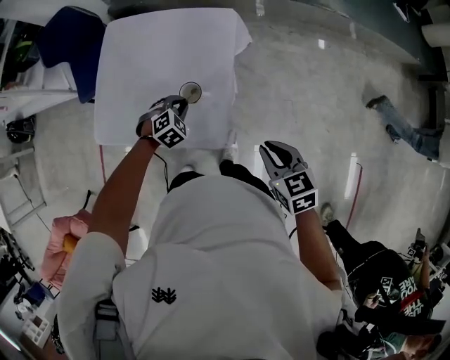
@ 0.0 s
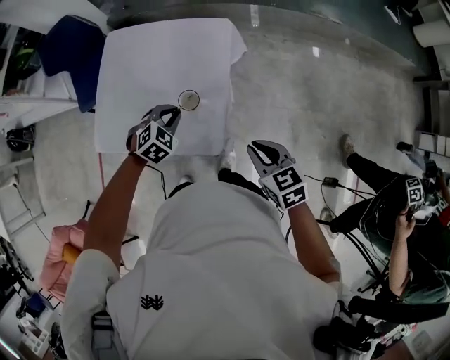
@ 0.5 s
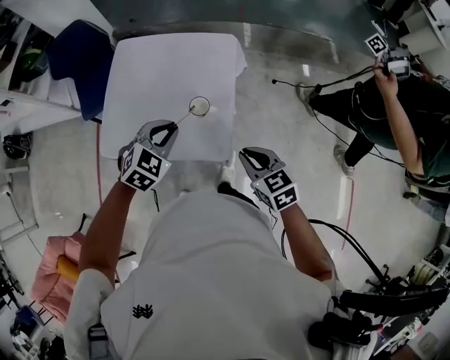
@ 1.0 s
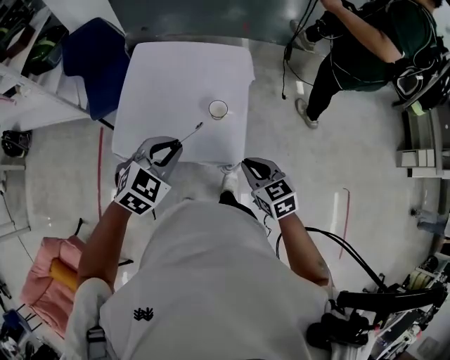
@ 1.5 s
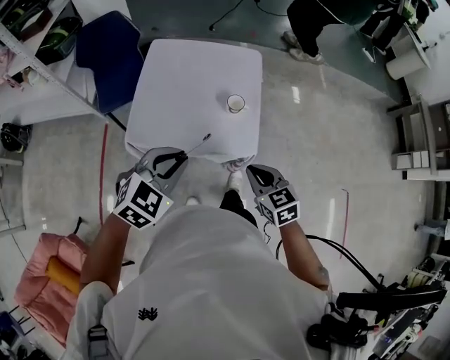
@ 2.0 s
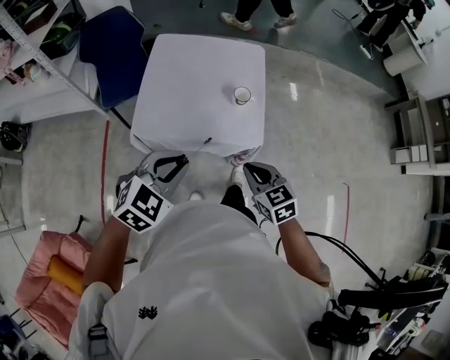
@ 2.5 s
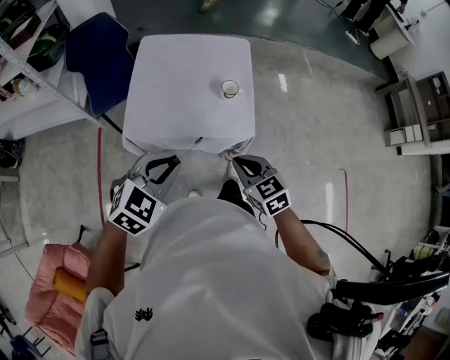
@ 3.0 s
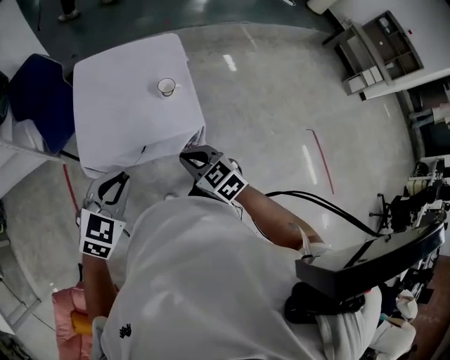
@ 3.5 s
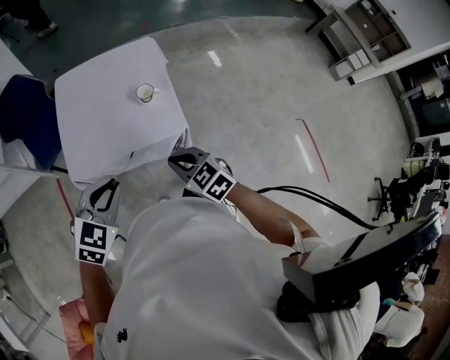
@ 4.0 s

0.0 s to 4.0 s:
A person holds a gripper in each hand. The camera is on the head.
0.0 to 2.0 s: The right gripper goes about 30 cm to the left and backward. The left gripper shifts approximately 40 cm upward, backward and to the left, and changes its angle by some 30 degrees.
2.0 to 4.0 s: The two grippers go roughly 5 cm backward.

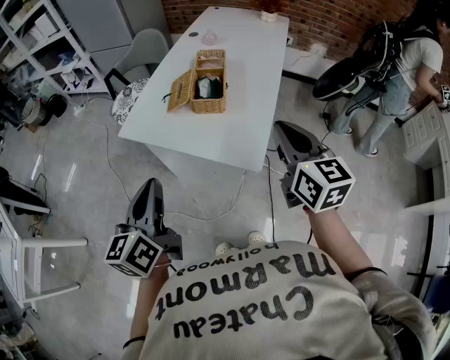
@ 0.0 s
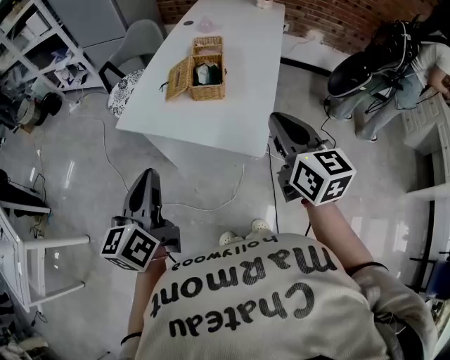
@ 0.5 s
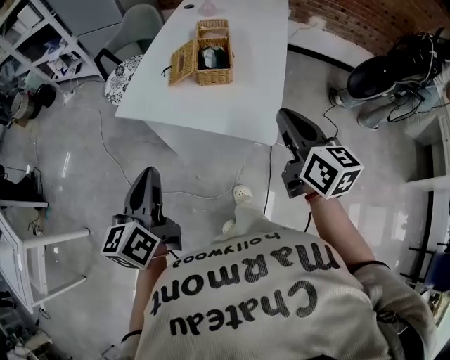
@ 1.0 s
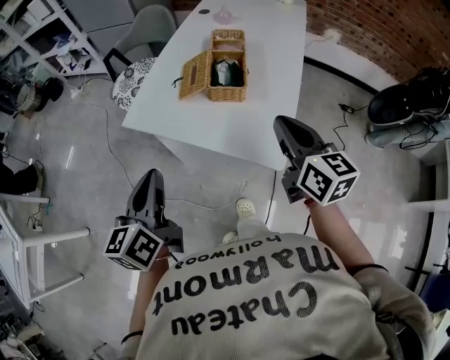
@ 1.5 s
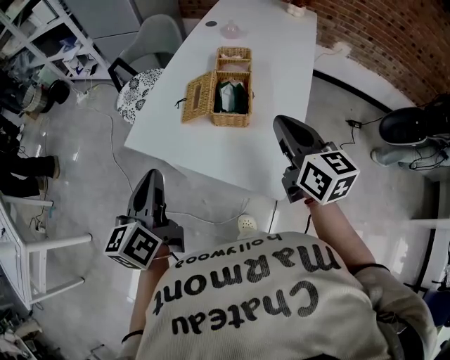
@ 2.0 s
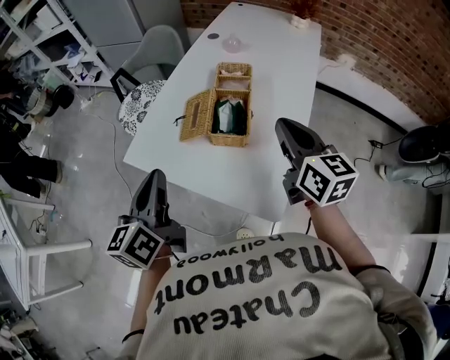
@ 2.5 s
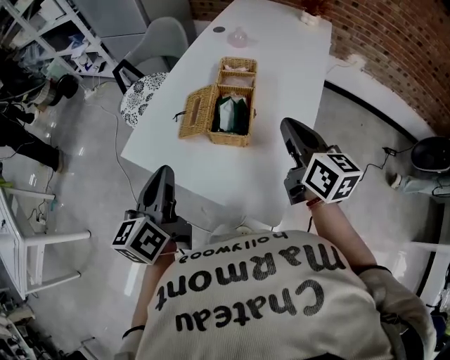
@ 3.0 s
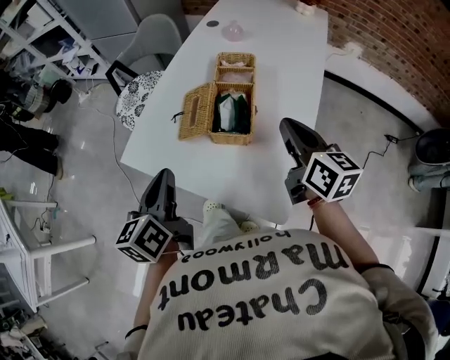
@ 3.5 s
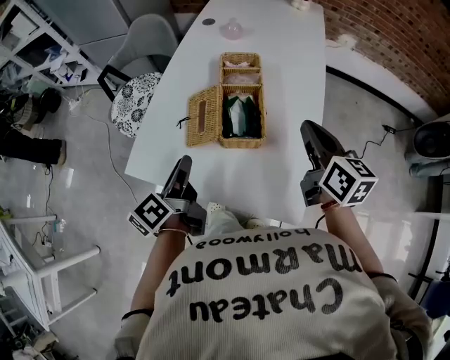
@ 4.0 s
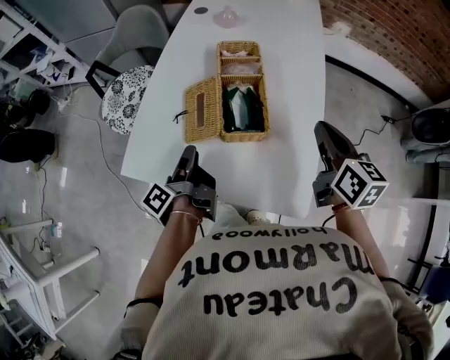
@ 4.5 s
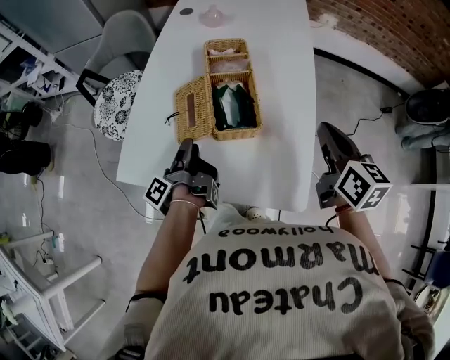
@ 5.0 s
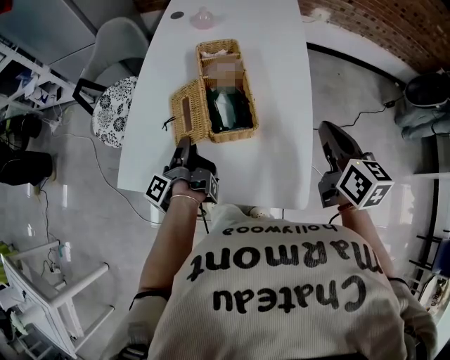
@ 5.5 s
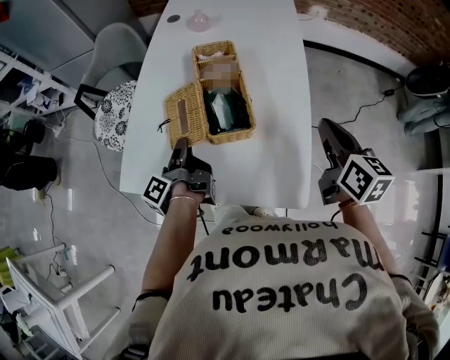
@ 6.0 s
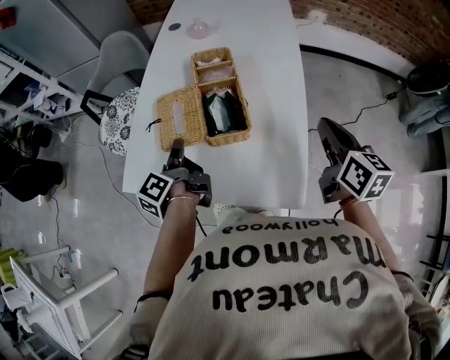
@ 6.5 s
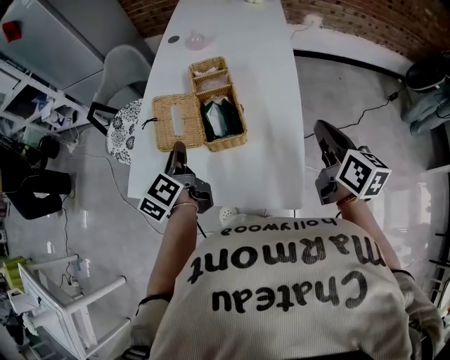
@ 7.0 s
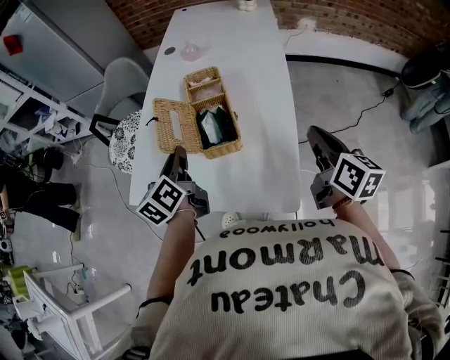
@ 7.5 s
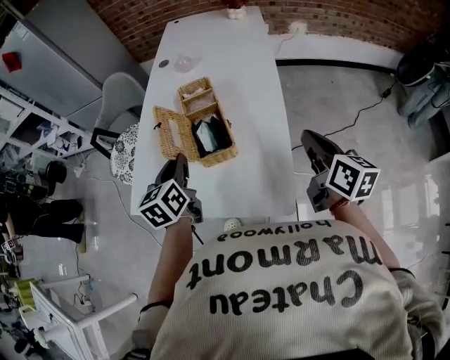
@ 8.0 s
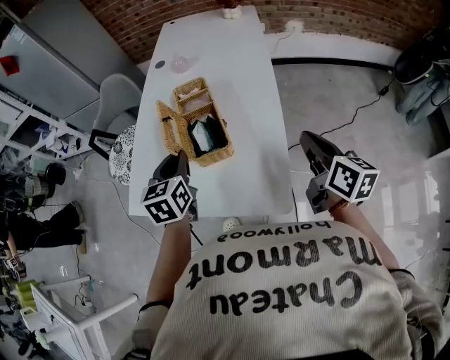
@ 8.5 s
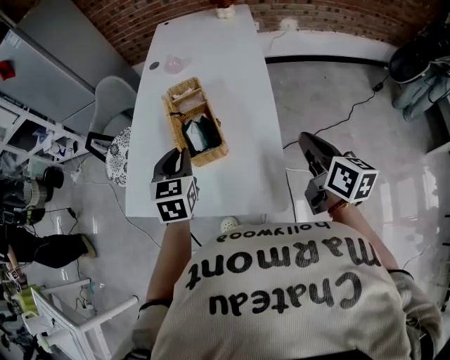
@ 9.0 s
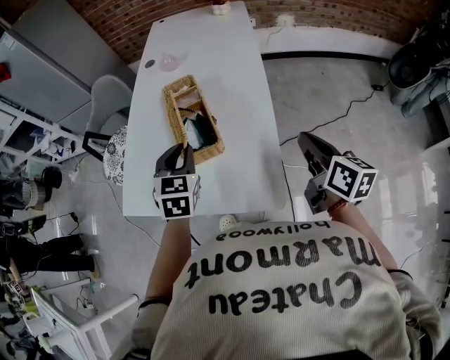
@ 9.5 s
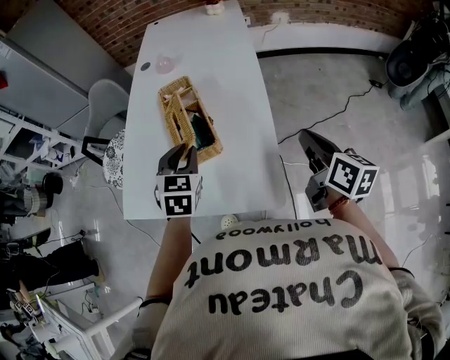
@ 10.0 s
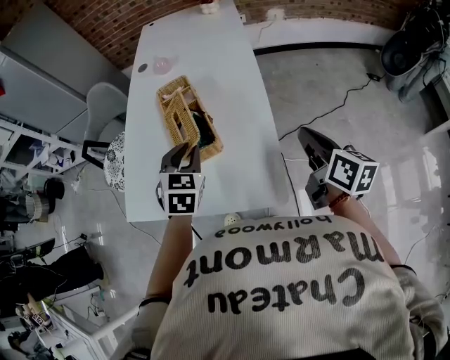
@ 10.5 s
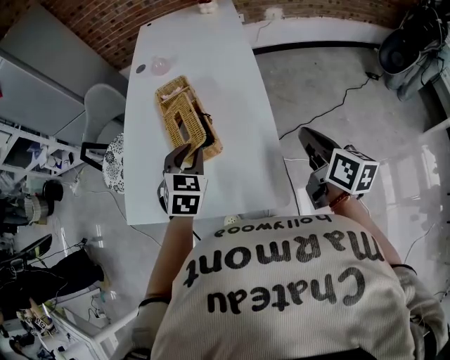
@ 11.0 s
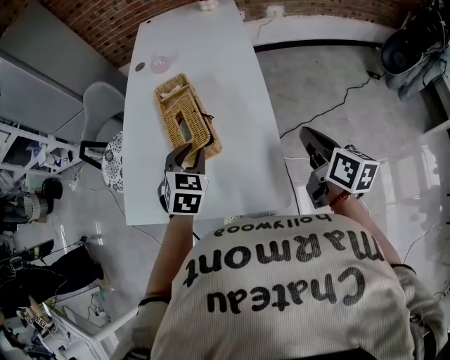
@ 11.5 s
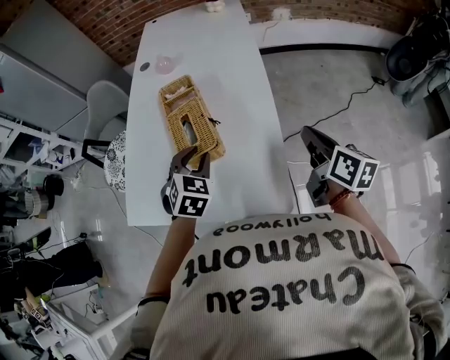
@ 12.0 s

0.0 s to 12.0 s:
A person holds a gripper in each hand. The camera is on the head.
0.0 to 2.0 s: The two grippers go approximately 15 cm forward.
2.0 to 4.0 s: The left gripper goes approximately 20 cm forward and downward, rotates some 30 degrees, and opens; the right gripper moves forward, to the right and downward, roughly 10 cm.
4.0 to 6.0 s: The right gripper travels to the right by roughly 5 cm; the left gripper goes approximately 10 cm downward and forward, and swivels about 40 degrees.
6.0 to 8.0 s: The right gripper ends up approximately 5 cm from where it was, while the left gripper moves upward and to the right, some 15 cm, and twists roughly 80 degrees clockwise, seen from behind.
8.0 to 10.0 s: The left gripper goes some 10 cm to the right, and rotates approximately 40 degrees; the right gripper ends up approximately 5 cm from where it was.
10.0 to 12.0 s: The grippers move only a little.

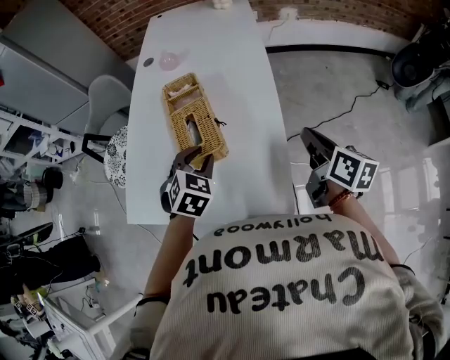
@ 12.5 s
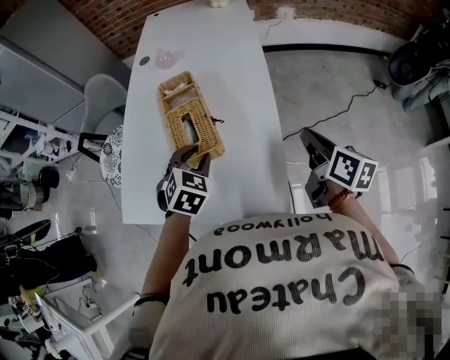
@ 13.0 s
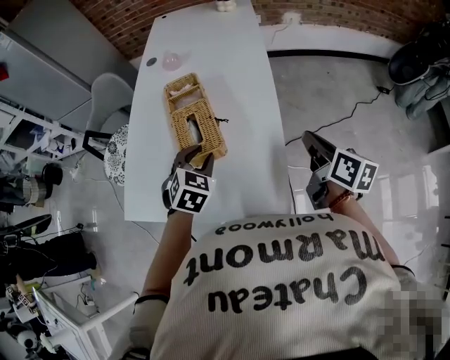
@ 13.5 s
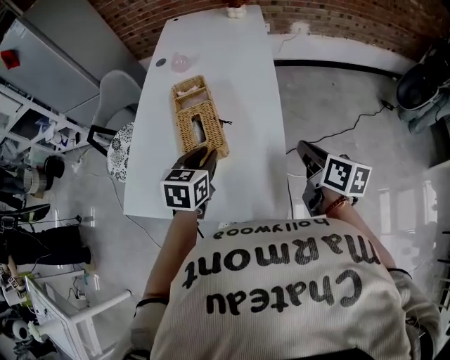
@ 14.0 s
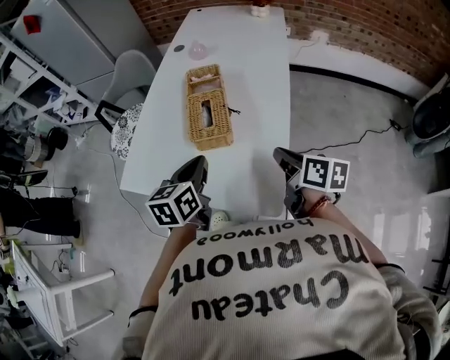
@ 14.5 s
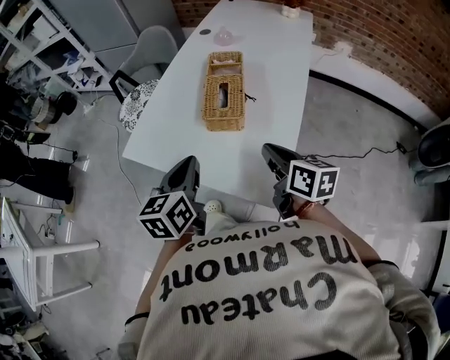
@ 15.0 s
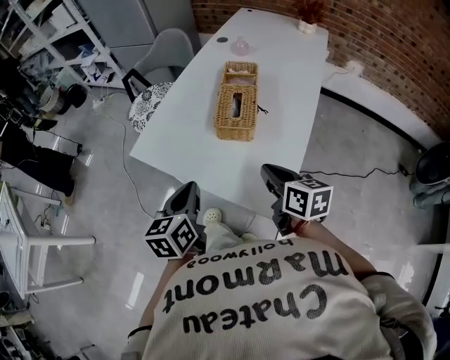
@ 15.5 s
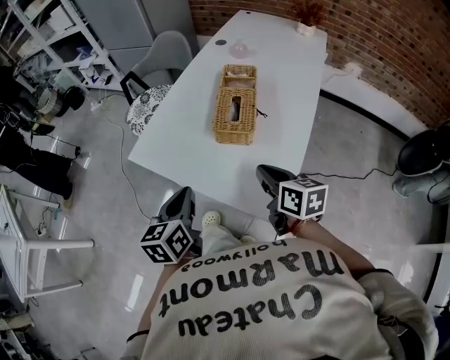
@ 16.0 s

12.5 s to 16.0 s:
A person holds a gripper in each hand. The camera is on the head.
12.5 to 14.5 s: The left gripper goes about 10 cm backward, rotates around the line of its fingers by about 60 degrees, counterclockwise from behind, and closes up; the right gripper heads to the left, covering some 5 cm, and swivels about 20 degrees.
14.5 to 16.0 s: The left gripper moves to the left and backward, about 15 cm, while the right gripper shifts about 10 cm to the left, and rotates roughly 20 degrees.

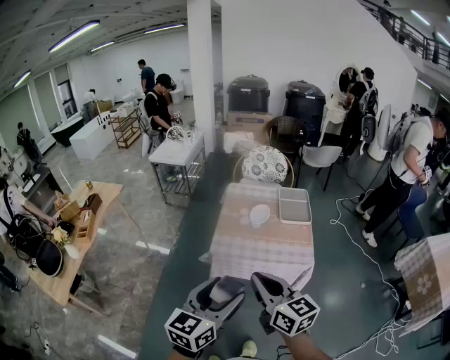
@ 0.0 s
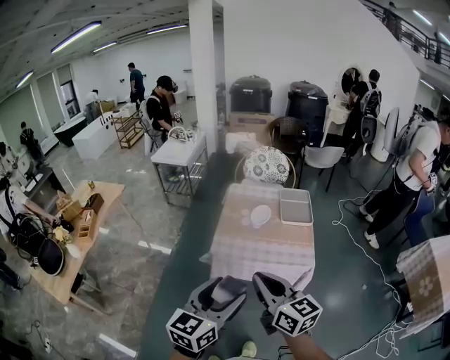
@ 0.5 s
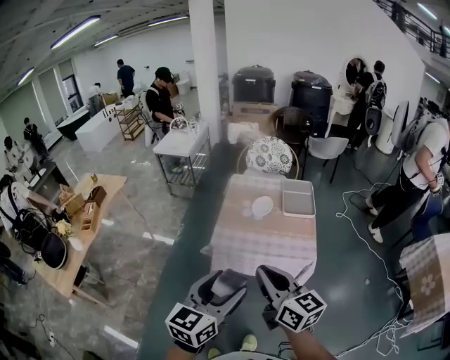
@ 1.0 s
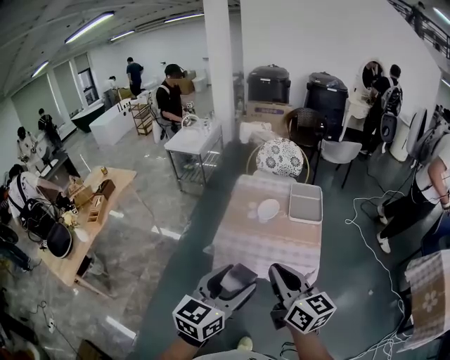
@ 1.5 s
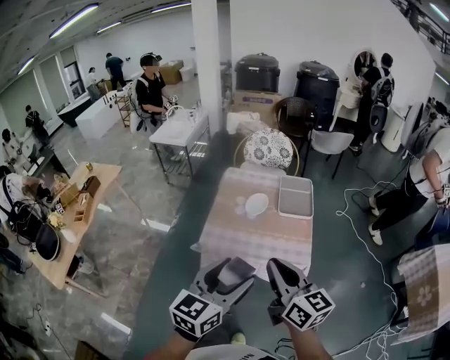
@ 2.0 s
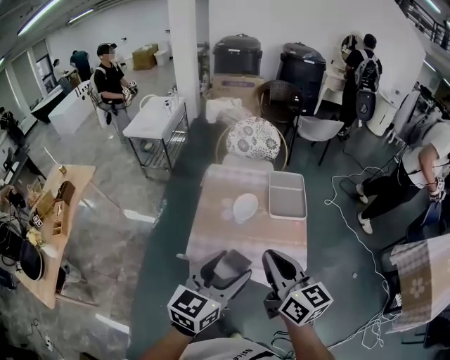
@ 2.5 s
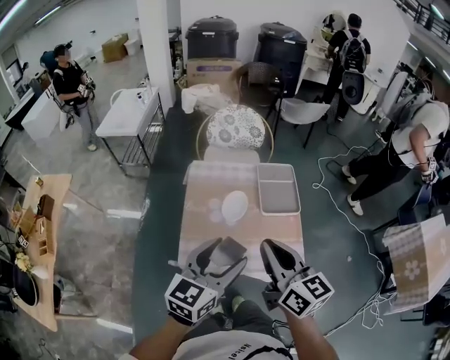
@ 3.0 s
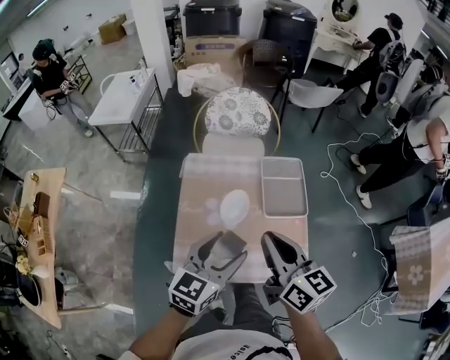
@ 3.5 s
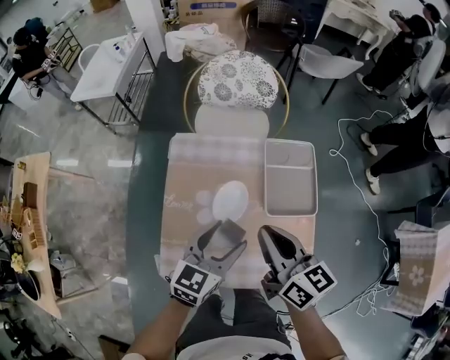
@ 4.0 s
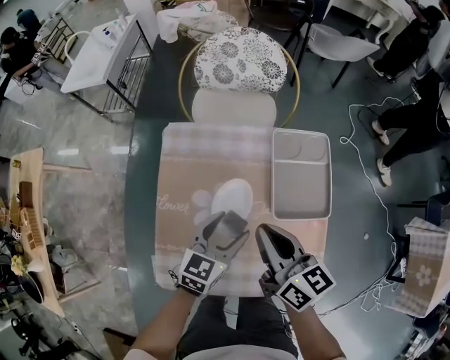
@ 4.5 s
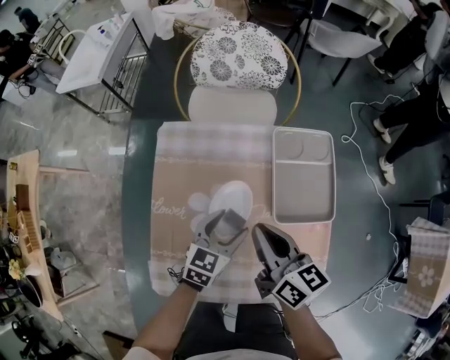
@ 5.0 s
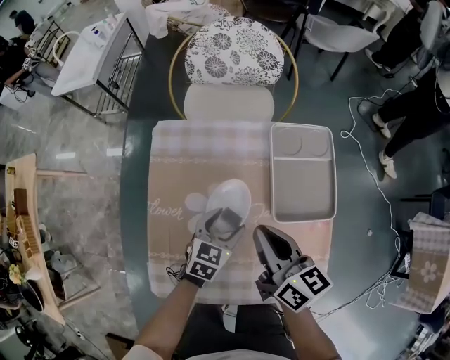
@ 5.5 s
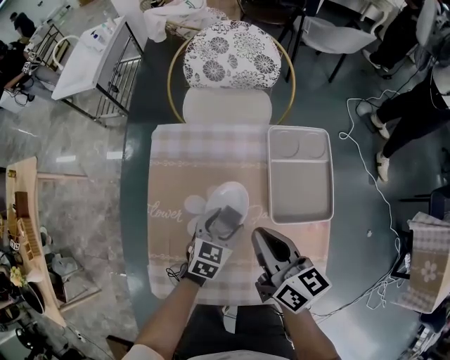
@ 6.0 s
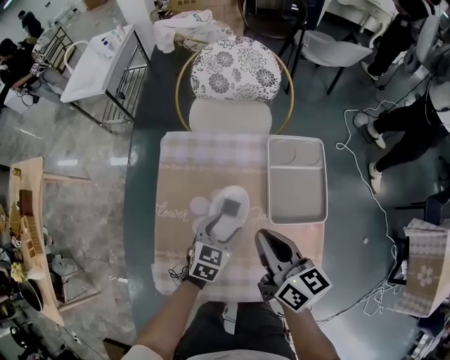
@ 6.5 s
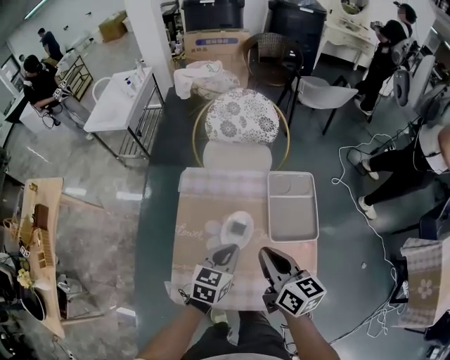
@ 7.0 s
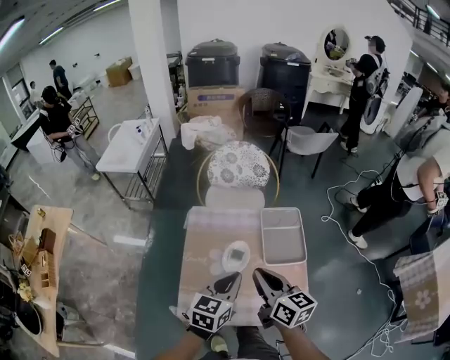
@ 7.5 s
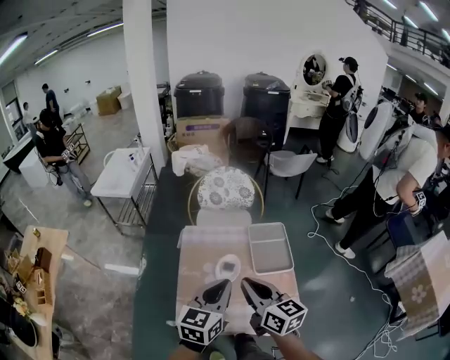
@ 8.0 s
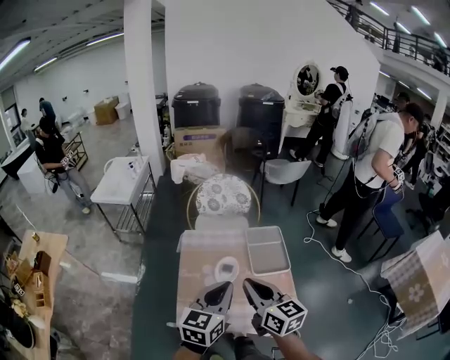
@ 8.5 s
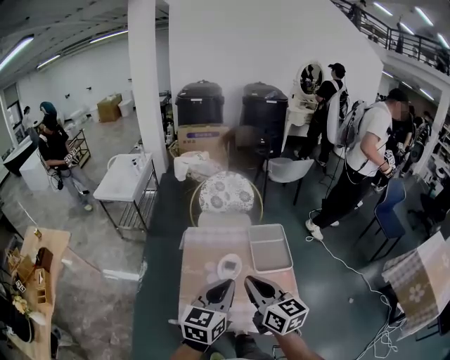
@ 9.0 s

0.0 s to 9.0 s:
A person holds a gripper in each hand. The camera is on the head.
0.0 to 2.0 s: Both grippers move to the right and forward, approximately 15 cm.
2.0 to 4.5 s: Both grippers are carried forward, about 50 cm. The grippers both shift downward by roughly 30 cm. The left gripper turns by about 20 degrees. Meanwhile the right gripper swivels approximately 20 degrees.
4.5 to 7.0 s: The right gripper ends up some 5 cm from where it was; the left gripper goes downward and returns, about 10 cm each way, and closes.
7.0 to 9.0 s: The grippers both shift upward and backward by some 25 cm. The left gripper swivels roughly 20 degrees.
